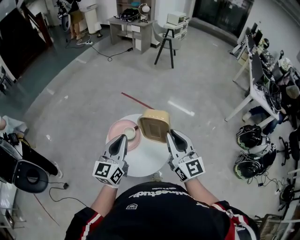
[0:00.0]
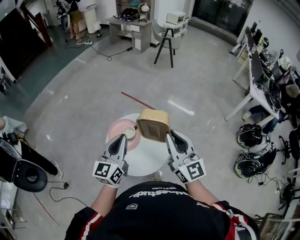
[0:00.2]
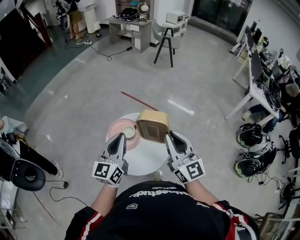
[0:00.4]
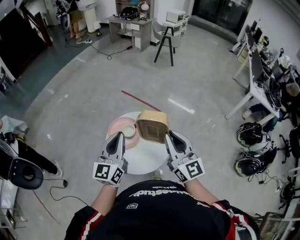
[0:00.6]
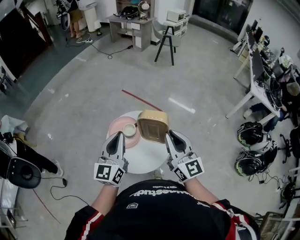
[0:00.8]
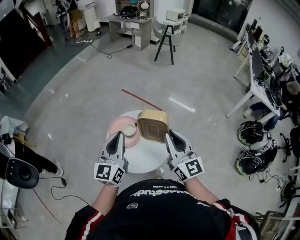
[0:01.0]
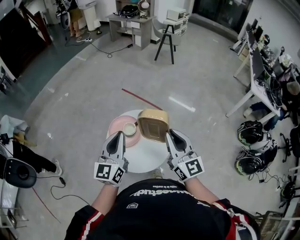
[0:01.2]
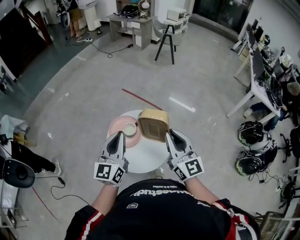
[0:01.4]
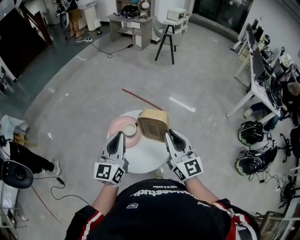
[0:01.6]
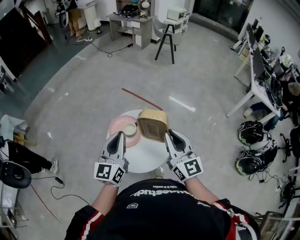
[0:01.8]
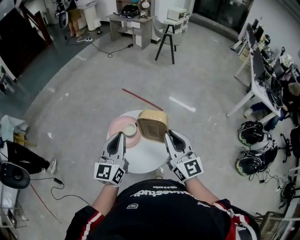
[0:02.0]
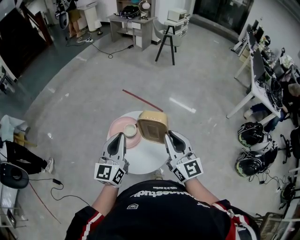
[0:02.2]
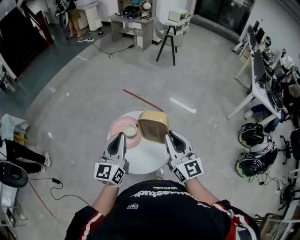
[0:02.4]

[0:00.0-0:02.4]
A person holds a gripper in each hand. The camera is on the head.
0:00.0 to 0:01.2: The grippers make only small movements.
0:01.2 to 0:02.4: The two grippers keep their place.

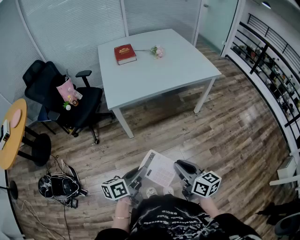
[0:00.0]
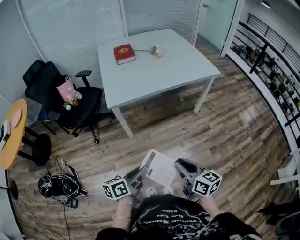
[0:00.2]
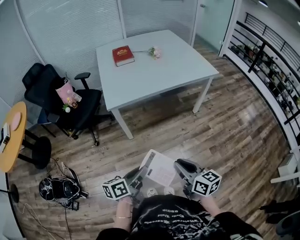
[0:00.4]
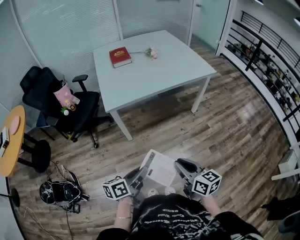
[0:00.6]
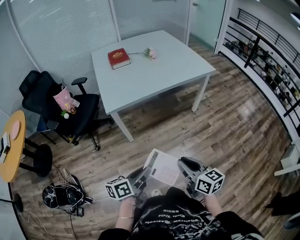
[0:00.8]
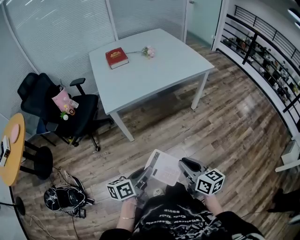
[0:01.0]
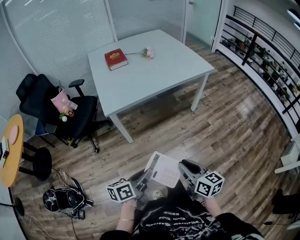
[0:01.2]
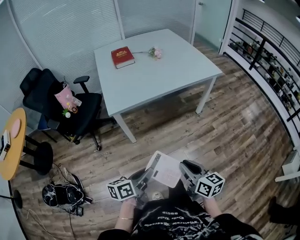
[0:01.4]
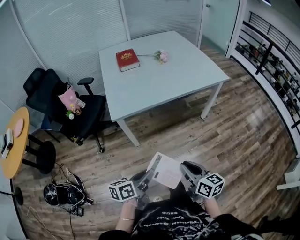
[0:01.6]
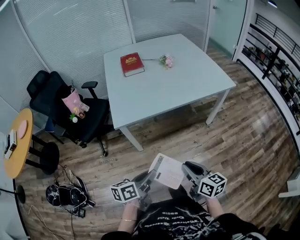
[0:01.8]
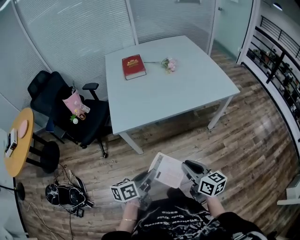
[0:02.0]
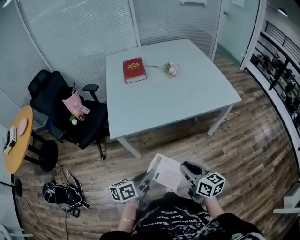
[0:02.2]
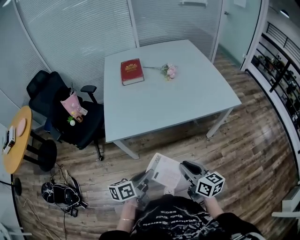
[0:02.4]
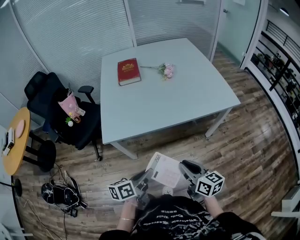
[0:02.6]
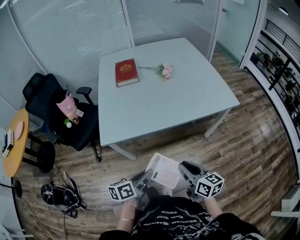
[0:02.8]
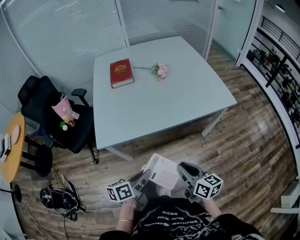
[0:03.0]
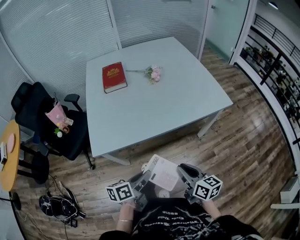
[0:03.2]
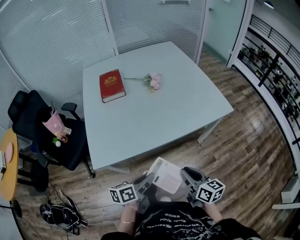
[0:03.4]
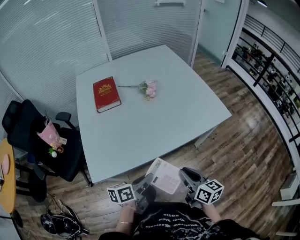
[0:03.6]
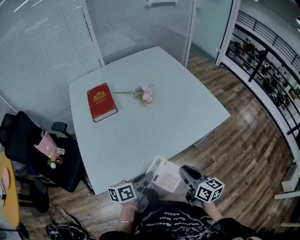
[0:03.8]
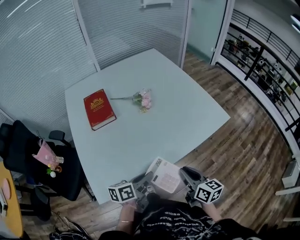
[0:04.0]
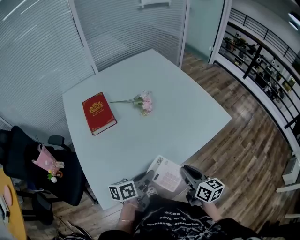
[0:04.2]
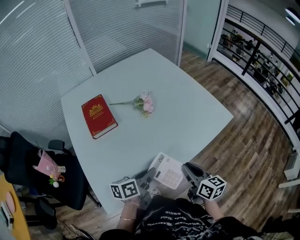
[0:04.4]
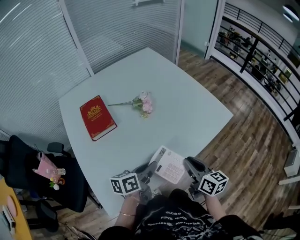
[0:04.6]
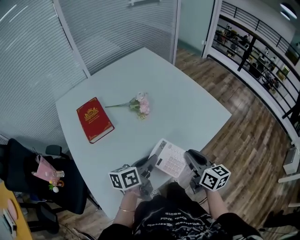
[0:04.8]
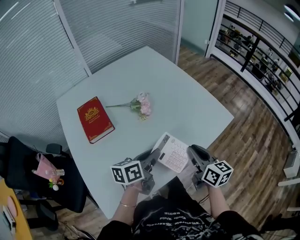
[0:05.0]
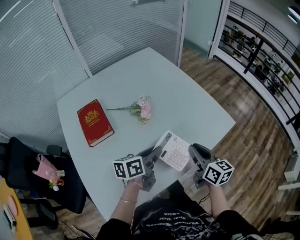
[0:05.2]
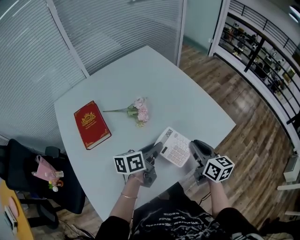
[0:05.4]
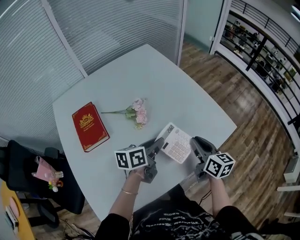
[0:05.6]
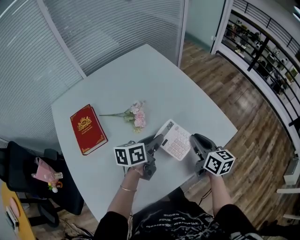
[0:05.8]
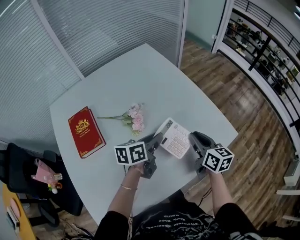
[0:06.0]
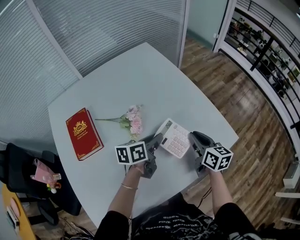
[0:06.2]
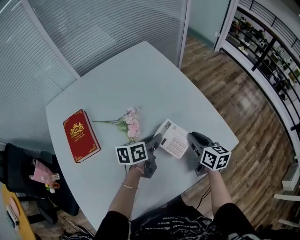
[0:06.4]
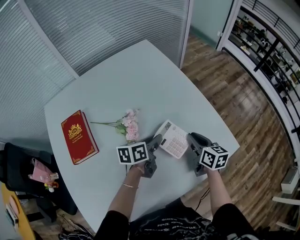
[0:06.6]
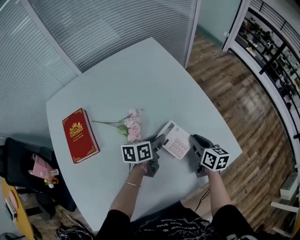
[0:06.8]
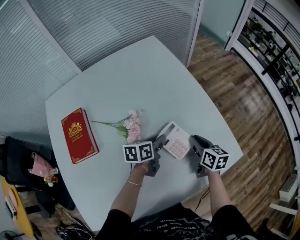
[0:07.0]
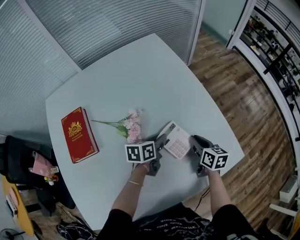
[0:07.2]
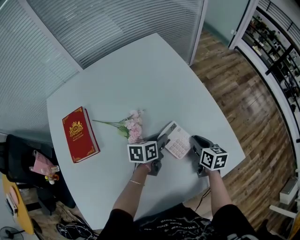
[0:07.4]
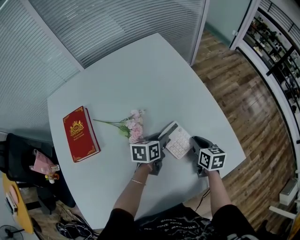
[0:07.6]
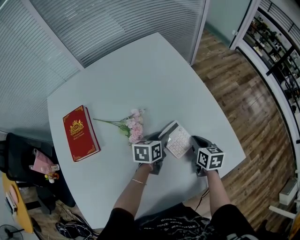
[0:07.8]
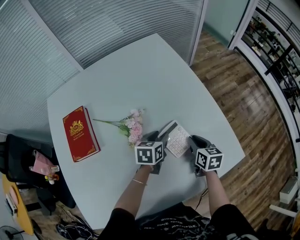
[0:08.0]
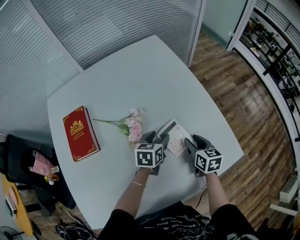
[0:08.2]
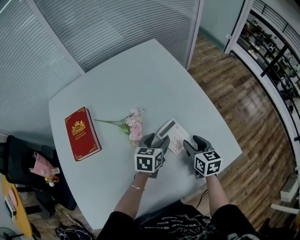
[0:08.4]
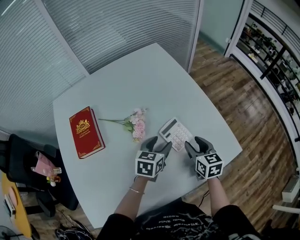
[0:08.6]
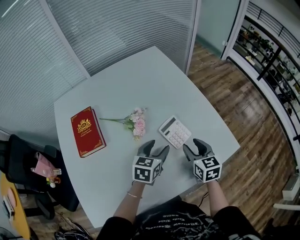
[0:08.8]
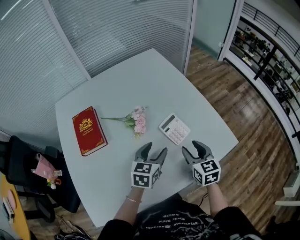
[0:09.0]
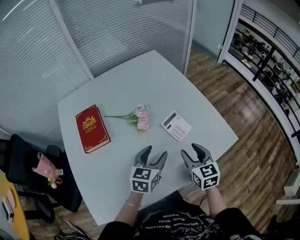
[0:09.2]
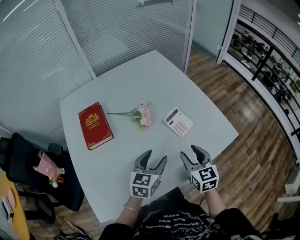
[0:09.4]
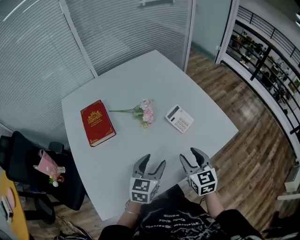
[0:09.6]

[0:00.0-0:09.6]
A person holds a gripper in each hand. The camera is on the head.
0:00.0 to 0:01.6: The two grippers go about 10 cm forward.
0:01.6 to 0:03.2: The two grippers go some 25 cm forward.
0:03.2 to 0:04.8: The grippers both shift forward by about 30 cm. The right gripper swivels about 20 degrees; the left gripper rotates approximately 20 degrees.
0:04.8 to 0:06.4: The two grippers go some 30 cm forward.
0:06.4 to 0:08.0: Both grippers travel together downward and forward, roughly 10 cm. The left gripper turns by some 20 degrees.
0:08.0 to 0:09.6: The two grippers go roughly 30 cm backward and upward. The right gripper turns by roughly 30 degrees, and opens up, while the left gripper turns by about 30 degrees, and opens up.

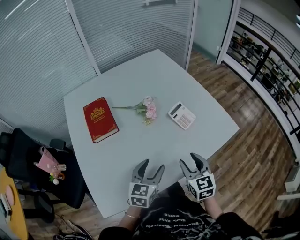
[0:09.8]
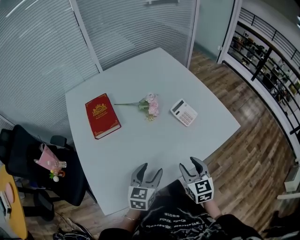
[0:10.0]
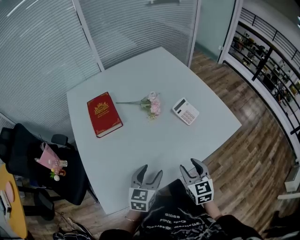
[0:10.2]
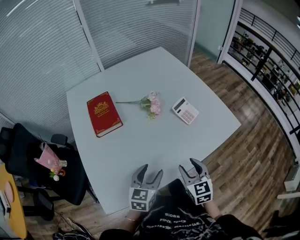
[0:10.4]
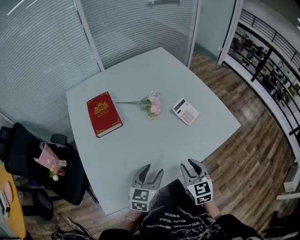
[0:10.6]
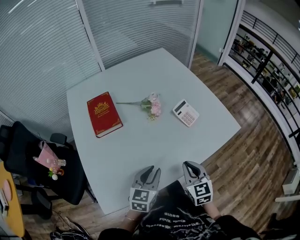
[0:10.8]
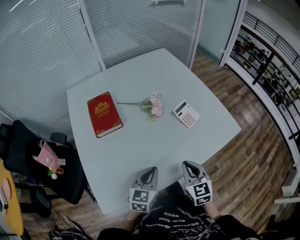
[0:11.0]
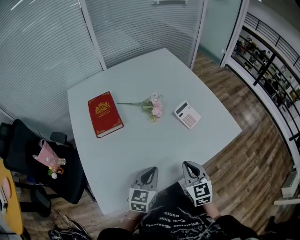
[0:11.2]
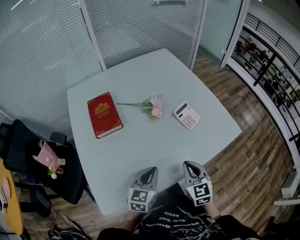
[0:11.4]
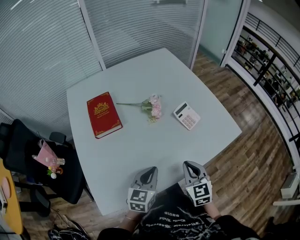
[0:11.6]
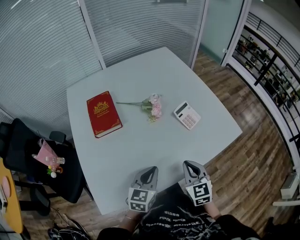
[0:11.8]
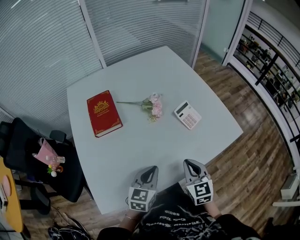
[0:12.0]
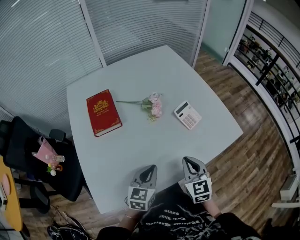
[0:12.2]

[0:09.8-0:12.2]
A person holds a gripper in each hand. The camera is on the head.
0:09.8 to 0:11.0: The left gripper closes up. The right gripper closes its fingers.
0:11.0 to 0:12.2: The grippers stay close to where they were, moving slightly.

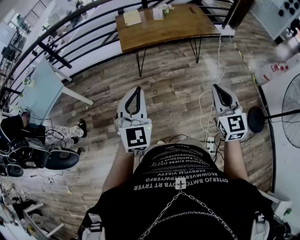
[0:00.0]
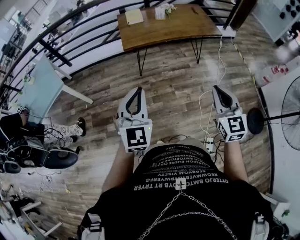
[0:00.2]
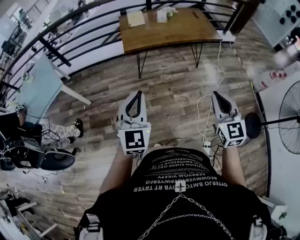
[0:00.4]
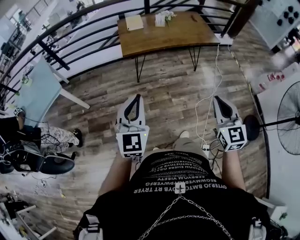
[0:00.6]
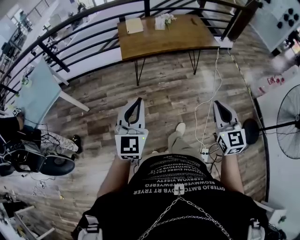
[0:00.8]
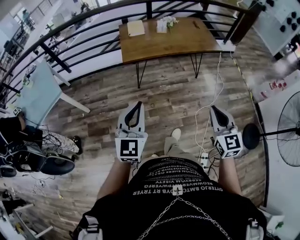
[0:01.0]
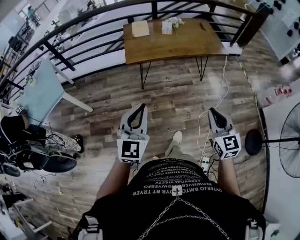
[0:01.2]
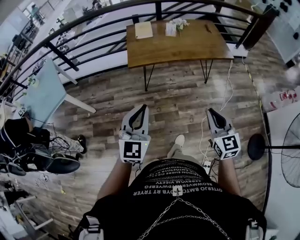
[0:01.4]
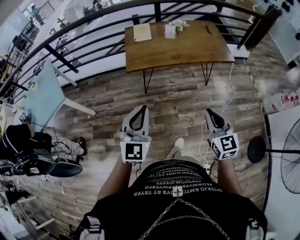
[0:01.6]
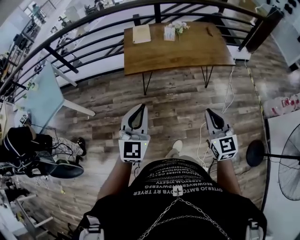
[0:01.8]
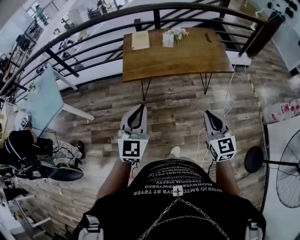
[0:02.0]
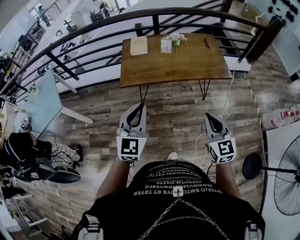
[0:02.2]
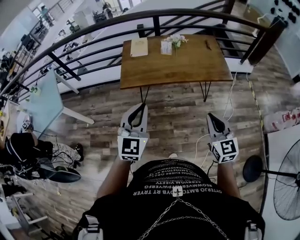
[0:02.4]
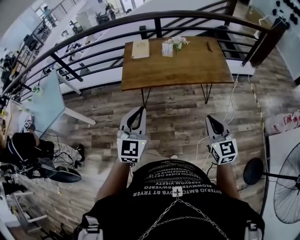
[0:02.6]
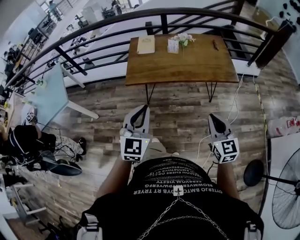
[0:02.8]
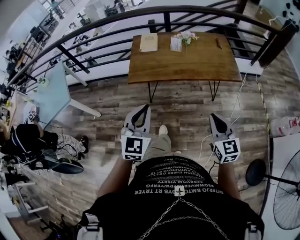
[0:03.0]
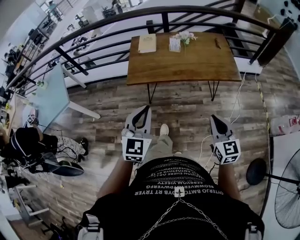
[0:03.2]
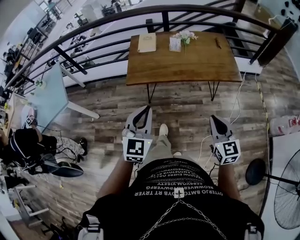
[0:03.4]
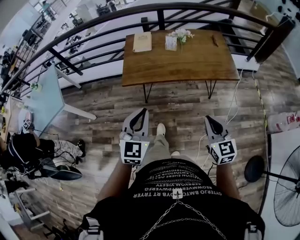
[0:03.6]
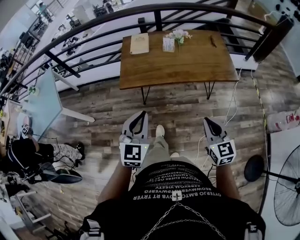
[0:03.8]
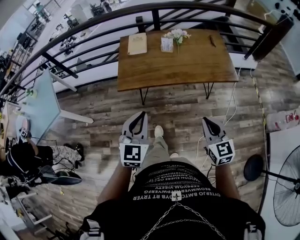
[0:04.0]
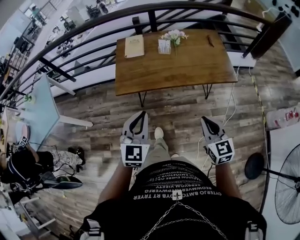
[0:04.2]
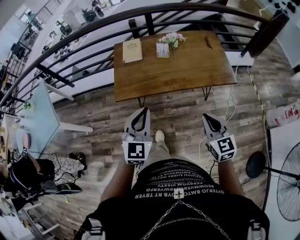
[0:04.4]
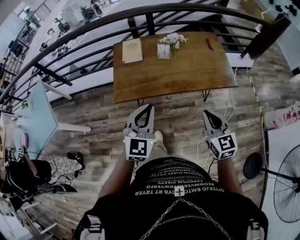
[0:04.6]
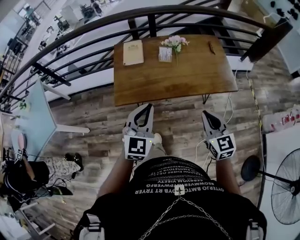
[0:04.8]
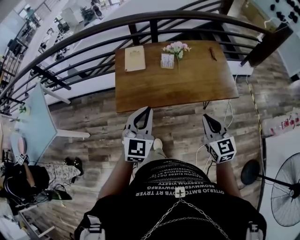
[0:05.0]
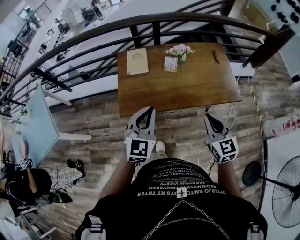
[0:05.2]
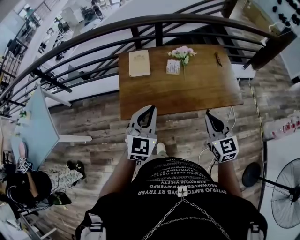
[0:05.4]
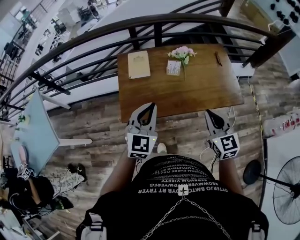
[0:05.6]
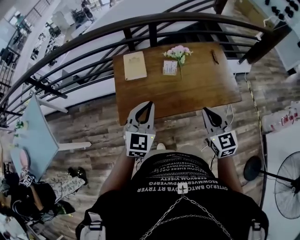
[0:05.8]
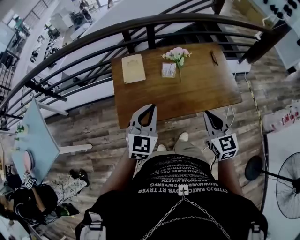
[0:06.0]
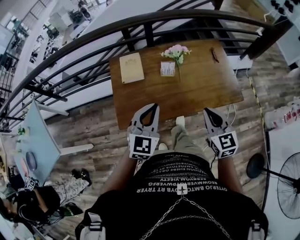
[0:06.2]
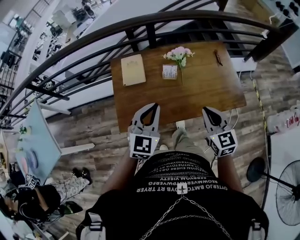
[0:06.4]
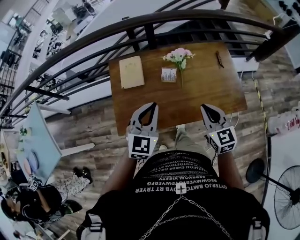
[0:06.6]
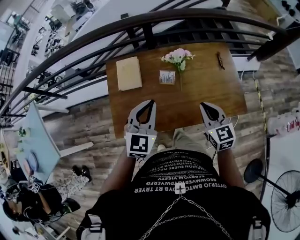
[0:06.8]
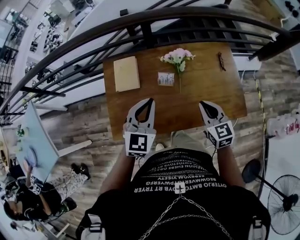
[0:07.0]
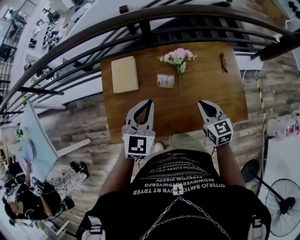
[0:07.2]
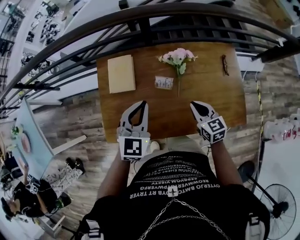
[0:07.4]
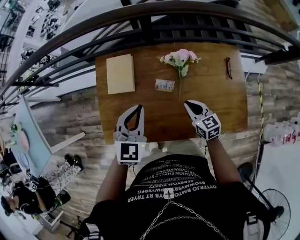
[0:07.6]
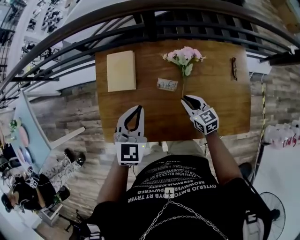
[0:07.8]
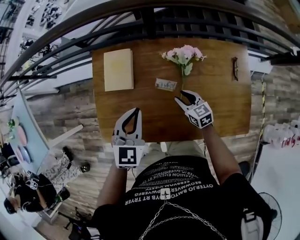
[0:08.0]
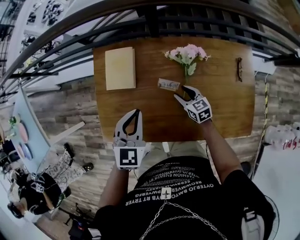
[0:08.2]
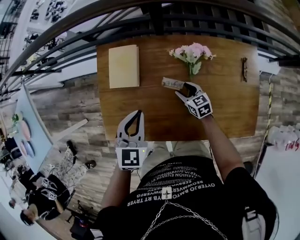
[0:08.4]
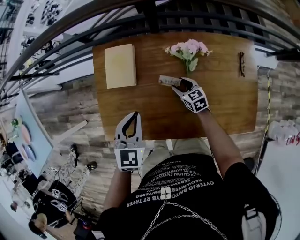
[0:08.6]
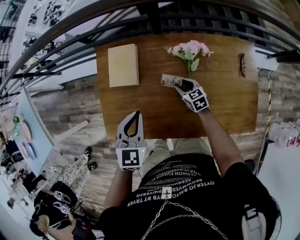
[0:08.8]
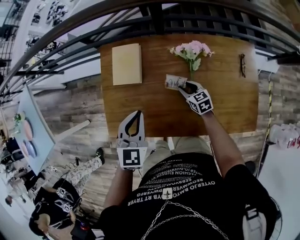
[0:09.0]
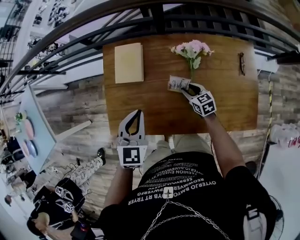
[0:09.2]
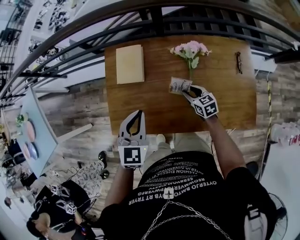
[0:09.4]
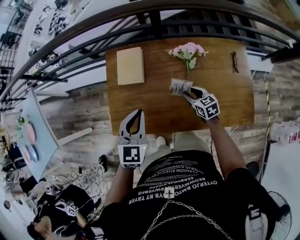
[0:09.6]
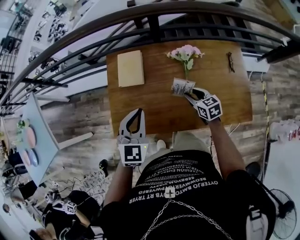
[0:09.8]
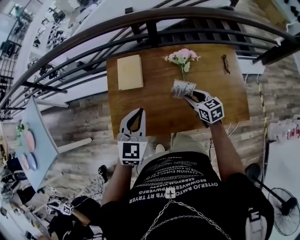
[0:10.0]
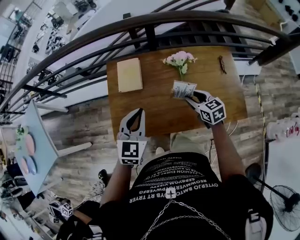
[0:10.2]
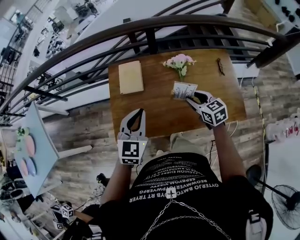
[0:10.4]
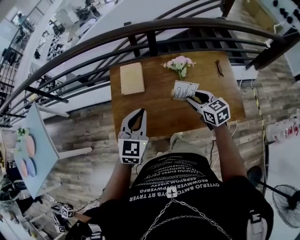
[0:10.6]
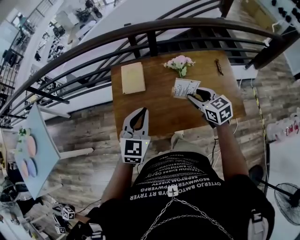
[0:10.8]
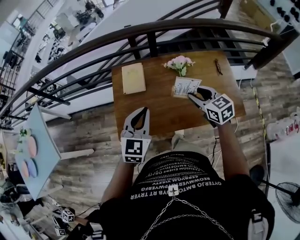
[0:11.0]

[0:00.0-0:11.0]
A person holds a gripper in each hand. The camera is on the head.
0:00.0 to 0:01.6: The right gripper shifts approximately 15 cm forward and downward. Meanwhile the left gripper goes roughly 15 cm forward.
0:01.6 to 0:03.2: The right gripper heads to the right and forward, covering roughly 15 cm. Meanwhile the left gripper shifts roughly 15 cm forward and to the right.
0:03.2 to 0:04.8: Both grippers move forward, approximately 20 cm.
0:04.8 to 0:06.2: Both grippers travel together forward, some 15 cm.
0:06.2 to 0:07.8: The right gripper heads forward and downward, covering some 35 cm, and swivels roughly 30 degrees. The left gripper travels forward and downward by approximately 25 cm, and swivels about 20 degrees.
0:07.8 to 0:09.4: The right gripper opens. Meanwhile the left gripper moves to the left and backward, some 5 cm.
0:09.4 to 0:11.0: The right gripper travels upward by some 25 cm. The left gripper travels upward and backward by about 15 cm.
